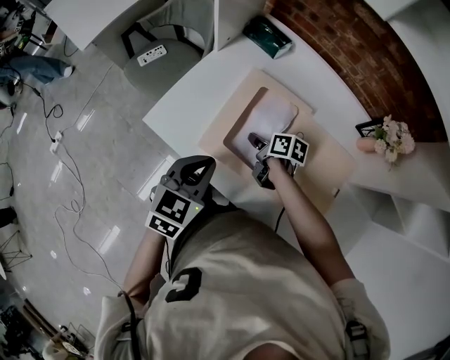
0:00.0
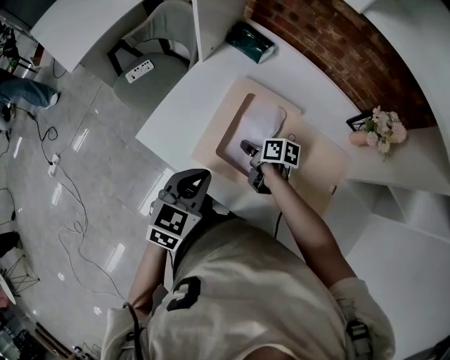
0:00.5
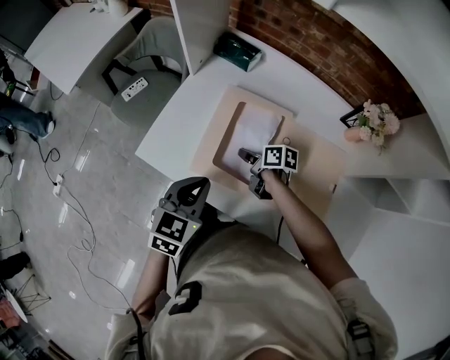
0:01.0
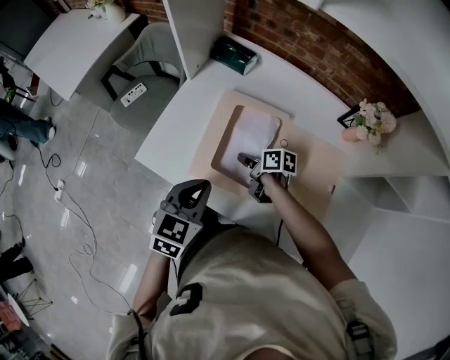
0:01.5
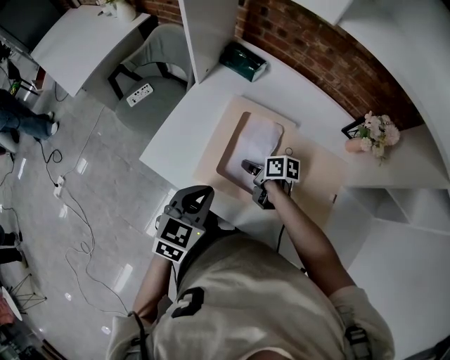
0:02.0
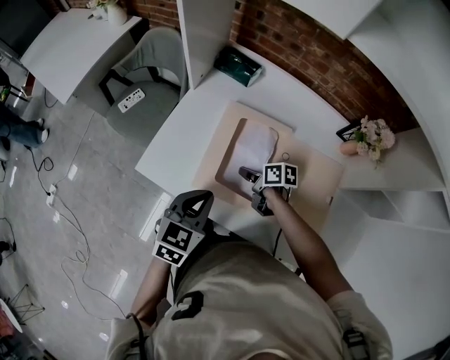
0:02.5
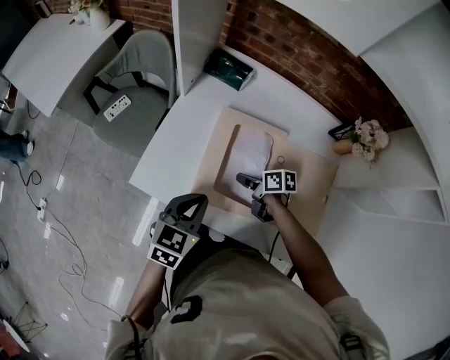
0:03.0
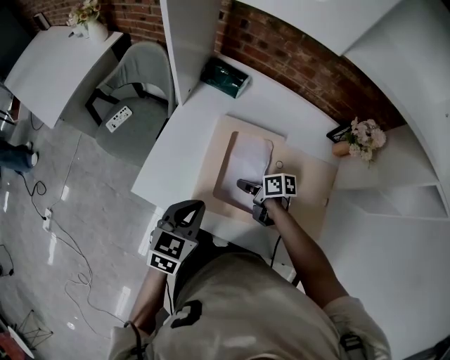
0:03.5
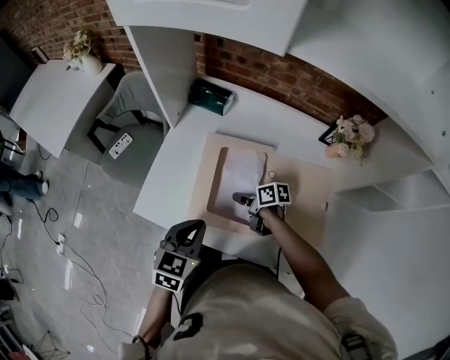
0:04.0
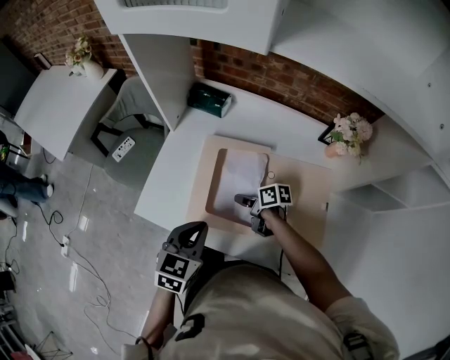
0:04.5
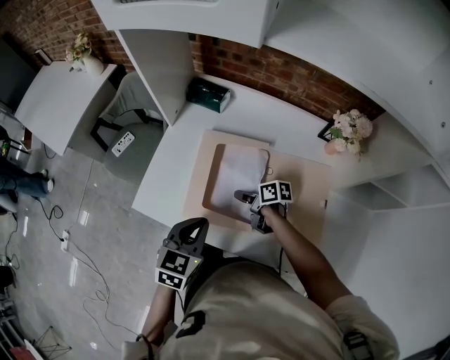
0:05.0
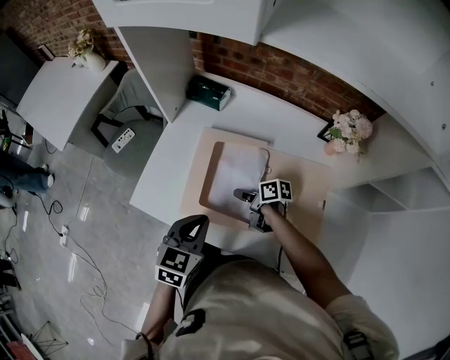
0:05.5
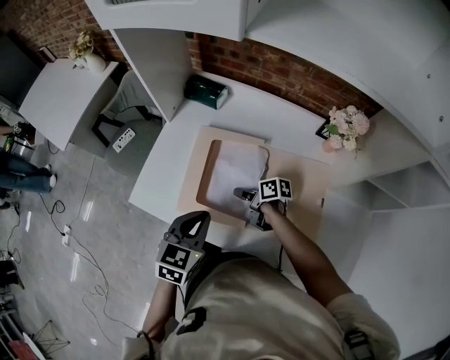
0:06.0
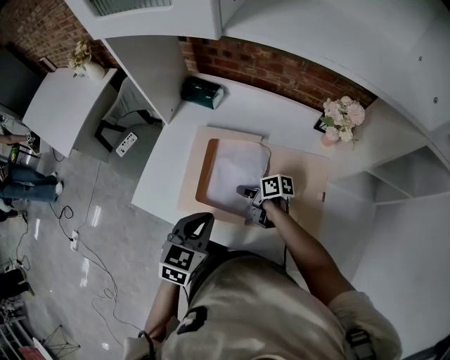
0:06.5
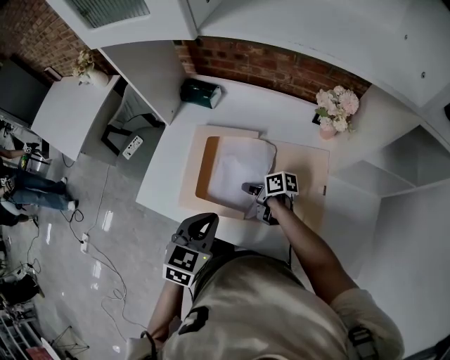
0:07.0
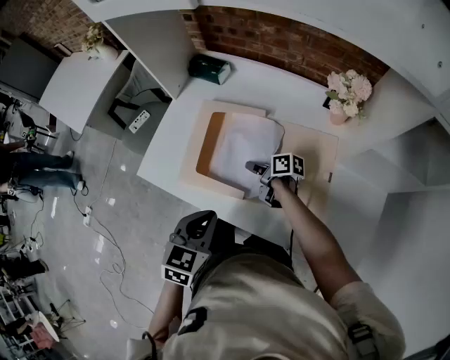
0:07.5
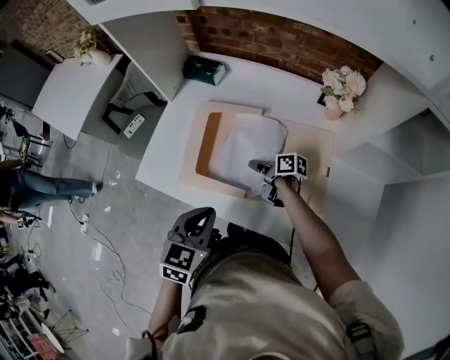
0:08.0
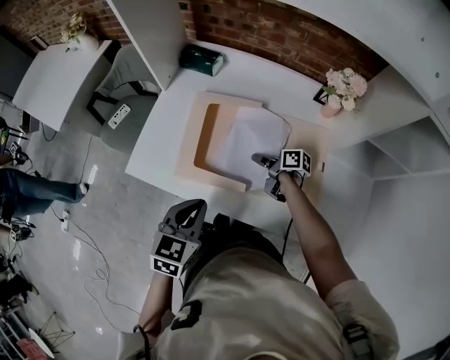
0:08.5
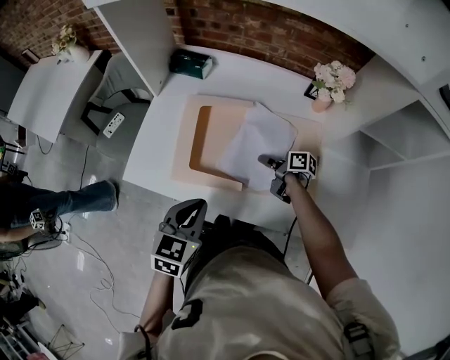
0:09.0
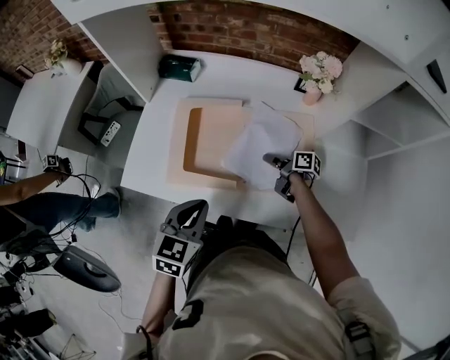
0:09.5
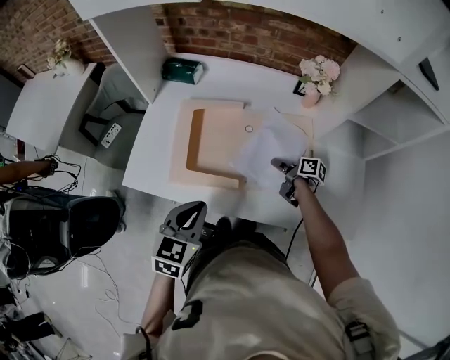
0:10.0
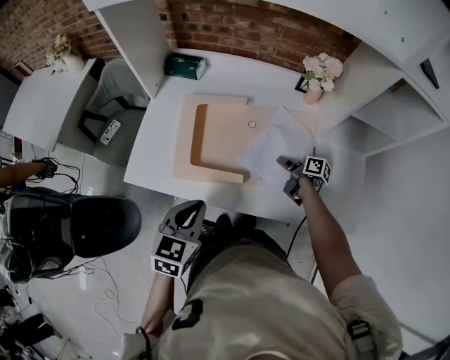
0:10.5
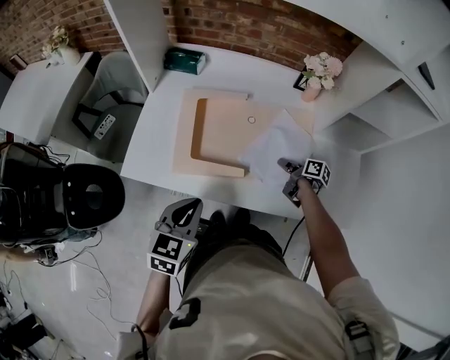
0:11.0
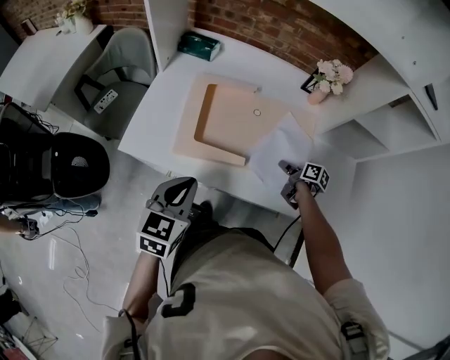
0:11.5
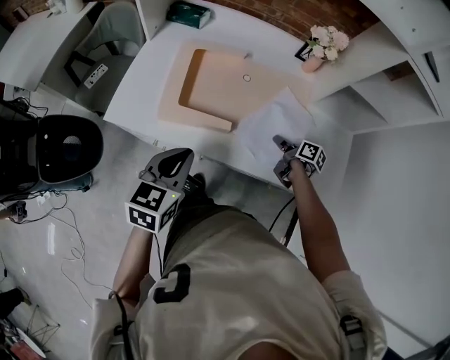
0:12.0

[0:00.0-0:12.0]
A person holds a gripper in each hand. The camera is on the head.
0:00.0 to 0:04.0: The grippers stay close to where they were, moving slightly.
0:04.0 to 0:06.0: The left gripper heads to the right, covering about 5 cm.
0:06.0 to 0:08.0: The left gripper shifts some 10 cm backward. Meanwhile the right gripper changes place by some 5 cm.
0:08.0 to 0:10.0: The right gripper moves to the right and backward, approximately 15 cm, and turns by some 20 degrees.
0:10.0 to 0:12.0: The right gripper moves backward, some 10 cm.

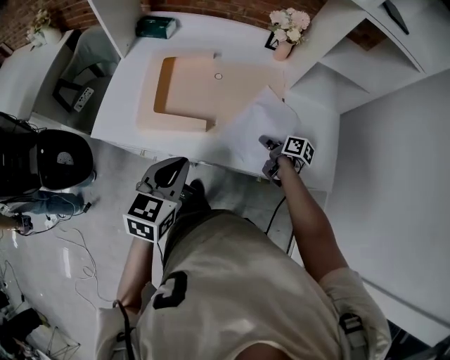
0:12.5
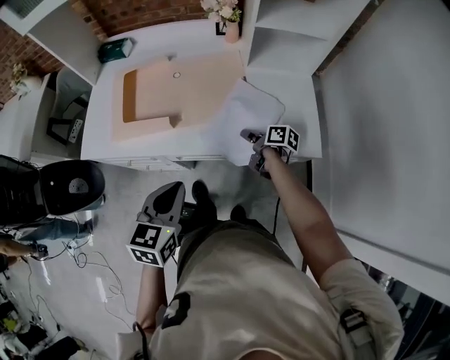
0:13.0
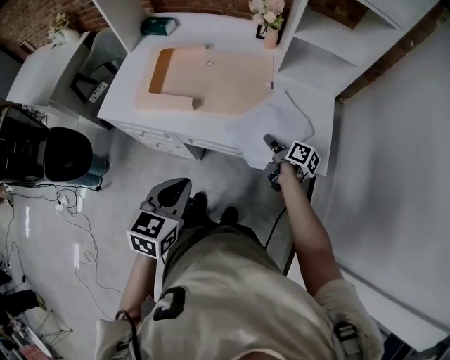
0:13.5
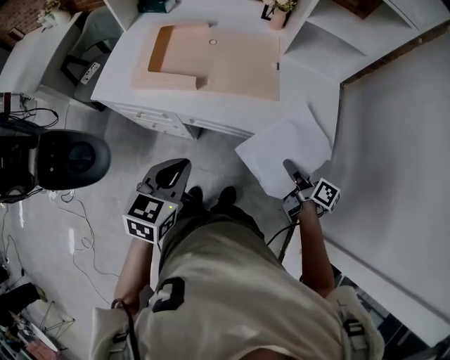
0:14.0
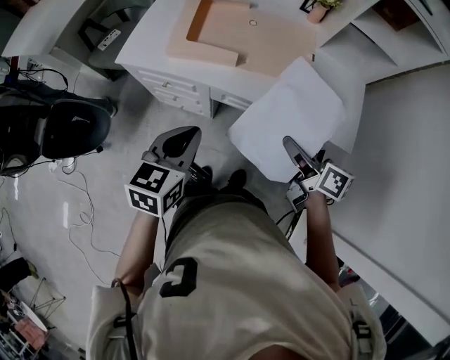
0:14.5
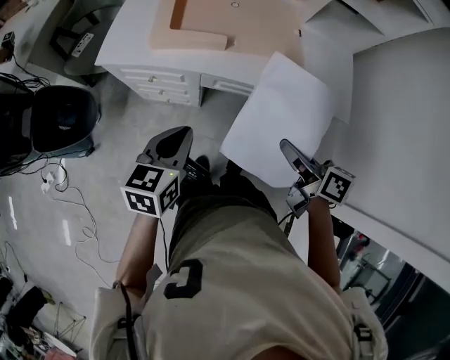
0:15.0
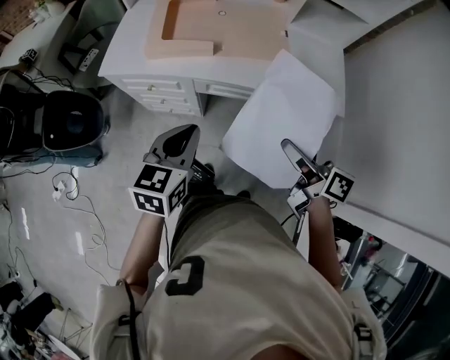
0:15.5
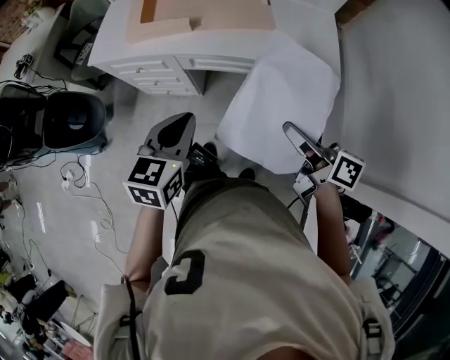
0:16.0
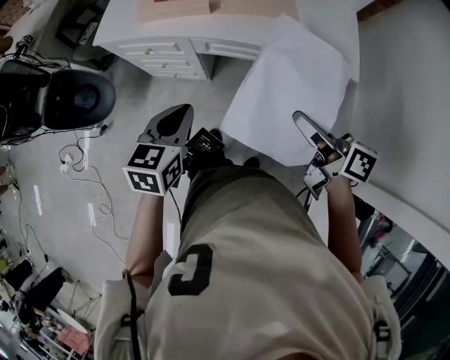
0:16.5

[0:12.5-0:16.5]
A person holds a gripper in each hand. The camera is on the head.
0:12.5 to 0:14.5: The left gripper is displaced backward by some 15 cm; the right gripper moves backward and upward, roughly 30 cm, and changes its angle by about 30 degrees.
0:14.5 to 0:16.5: The left gripper travels backward by some 10 cm, and goes to the right and returns, about 5 cm each way, while the right gripper shifts approximately 10 cm backward.

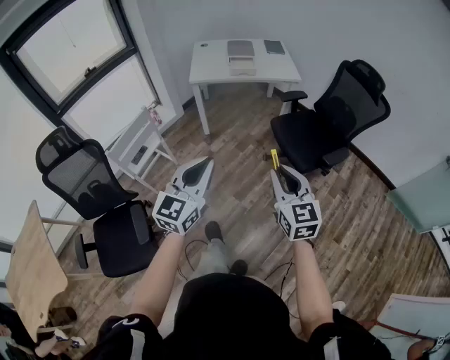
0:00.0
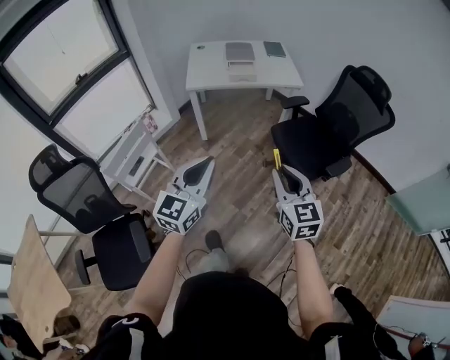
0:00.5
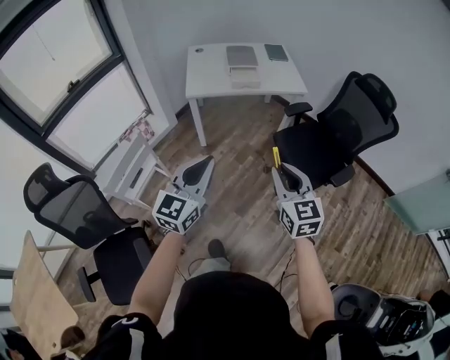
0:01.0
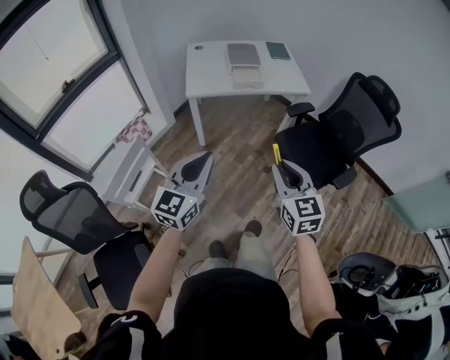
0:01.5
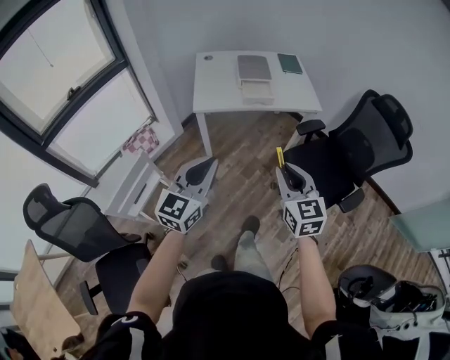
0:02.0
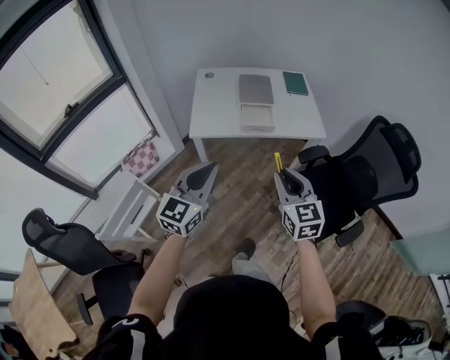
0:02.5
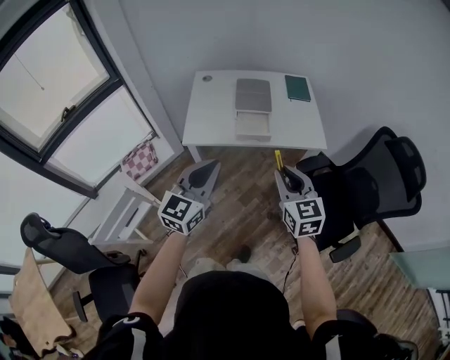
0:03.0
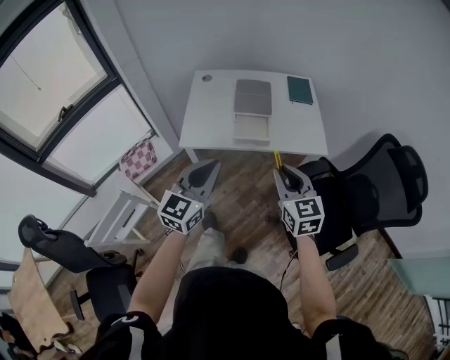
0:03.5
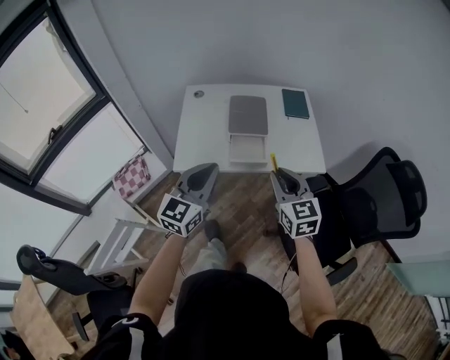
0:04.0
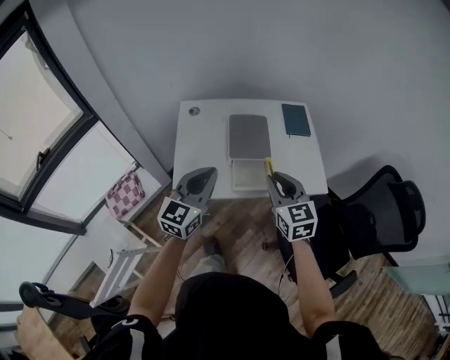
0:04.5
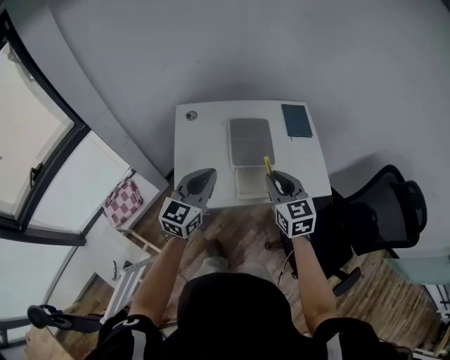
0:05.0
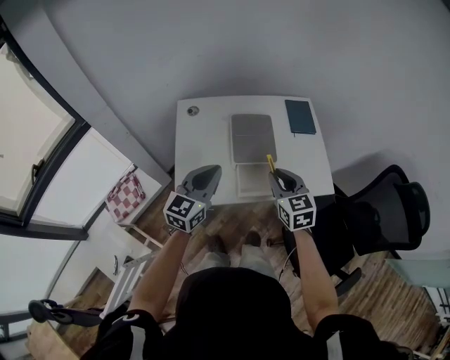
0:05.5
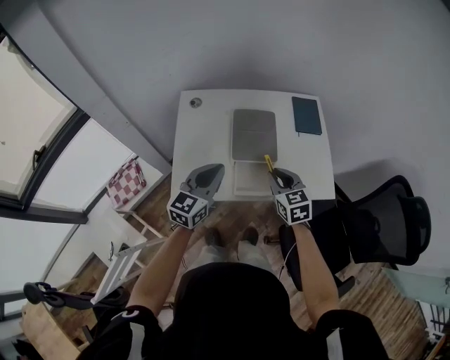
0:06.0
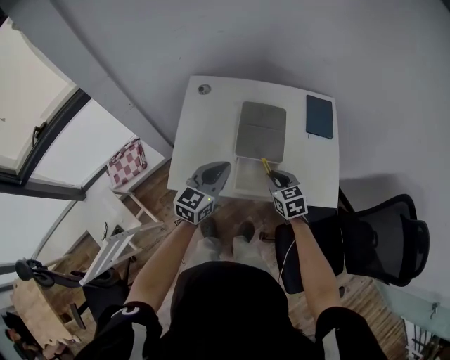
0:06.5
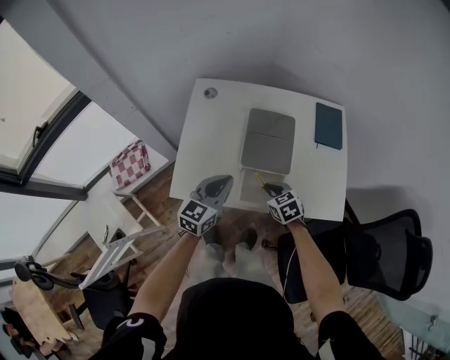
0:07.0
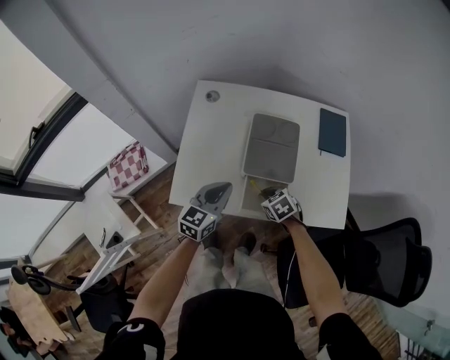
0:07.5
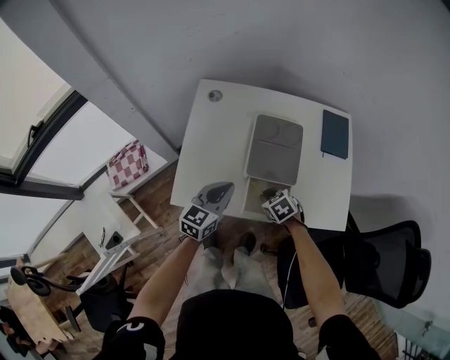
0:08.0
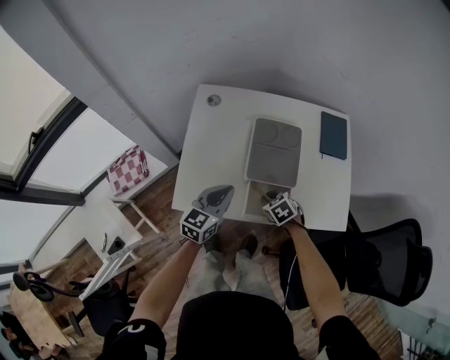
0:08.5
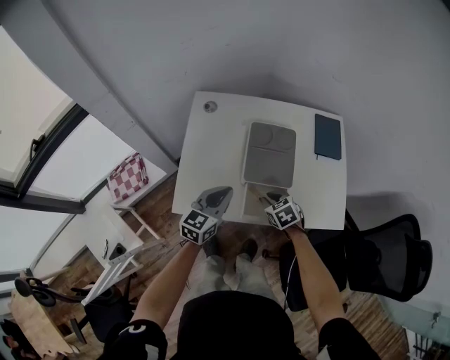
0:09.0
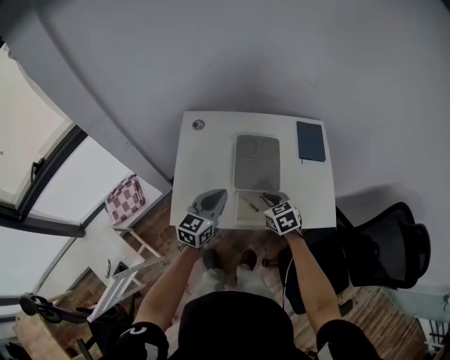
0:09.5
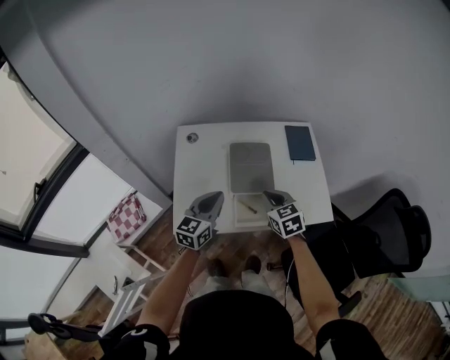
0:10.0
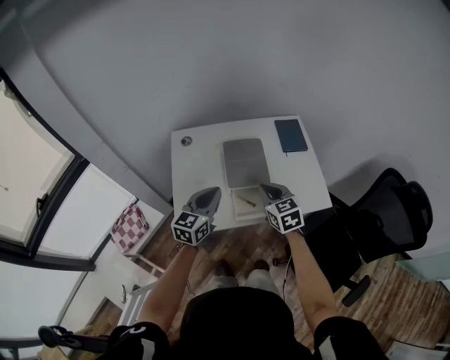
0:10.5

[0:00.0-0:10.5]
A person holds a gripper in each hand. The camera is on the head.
0:00.0 to 0:02.0: The left gripper travels forward and to the left by roughly 35 cm; the right gripper travels forward by approximately 35 cm.
0:02.0 to 0:04.0: The grippers both shift forward by roughly 40 cm.
0:04.0 to 0:06.5: Both grippers move forward and downward, approximately 30 cm. The right gripper changes its angle by some 30 degrees.
0:06.5 to 0:08.5: The right gripper shifts some 15 cm downward, and swivels approximately 30 degrees, while the left gripper moves downward, roughly 10 cm.
0:08.5 to 0:10.5: The left gripper heads upward, covering approximately 15 cm. The right gripper shifts roughly 25 cm upward, and angles its fingers upward, by roughly 40 degrees.
